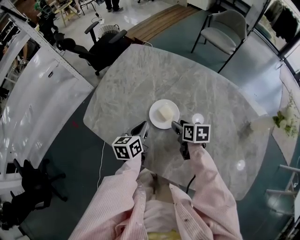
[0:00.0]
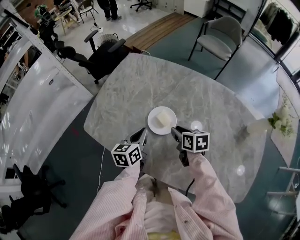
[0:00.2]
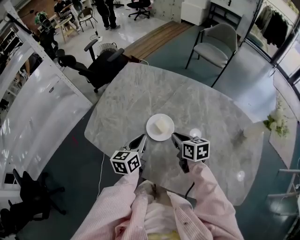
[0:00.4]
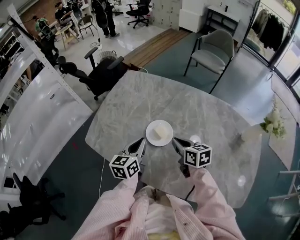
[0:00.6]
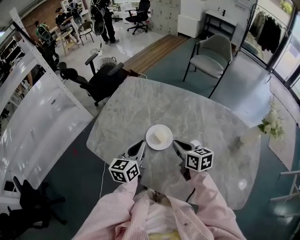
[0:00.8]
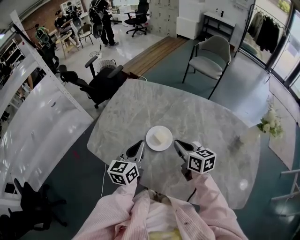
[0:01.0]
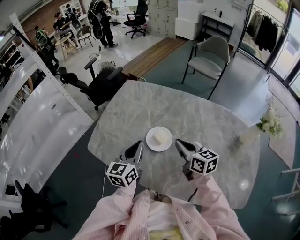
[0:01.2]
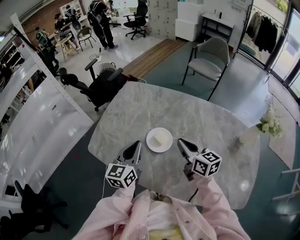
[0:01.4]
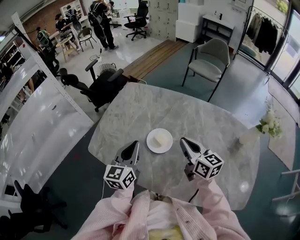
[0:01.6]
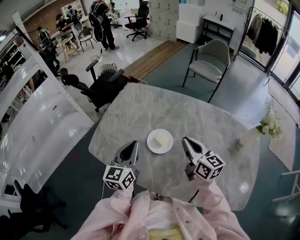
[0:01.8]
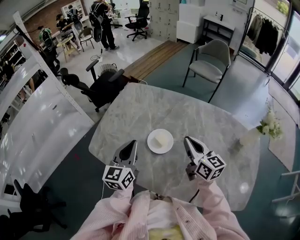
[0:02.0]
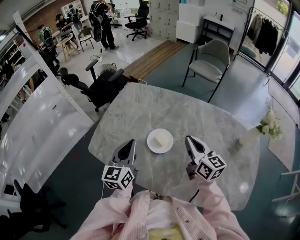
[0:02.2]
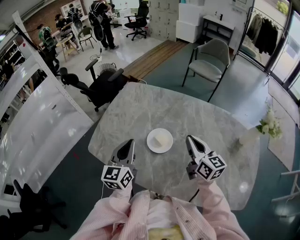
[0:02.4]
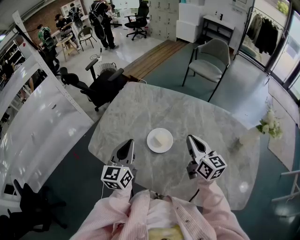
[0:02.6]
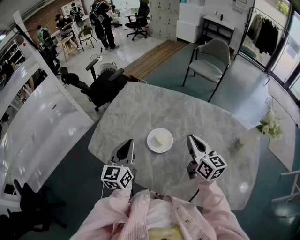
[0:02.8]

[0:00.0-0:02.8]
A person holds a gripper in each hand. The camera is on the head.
0:00.0 to 0:01.4: The left gripper travels upward by roughly 15 cm, and rotates about 30 degrees.

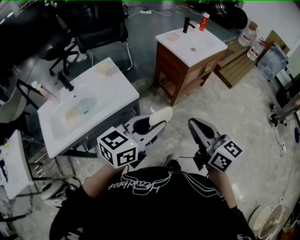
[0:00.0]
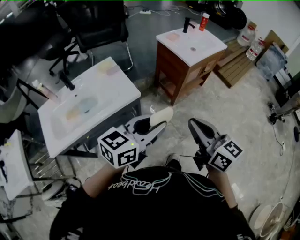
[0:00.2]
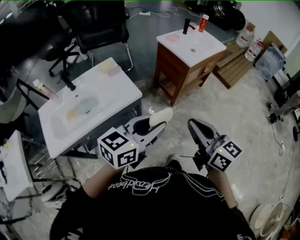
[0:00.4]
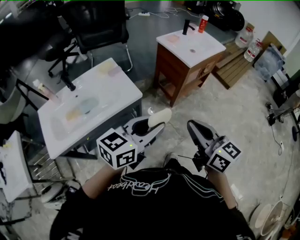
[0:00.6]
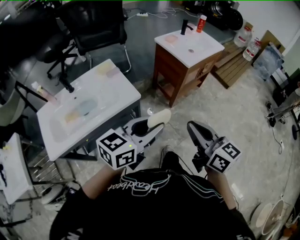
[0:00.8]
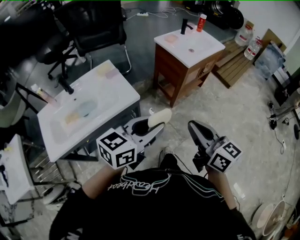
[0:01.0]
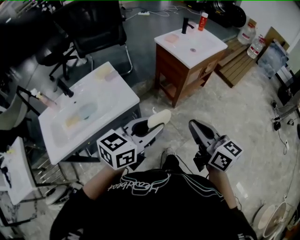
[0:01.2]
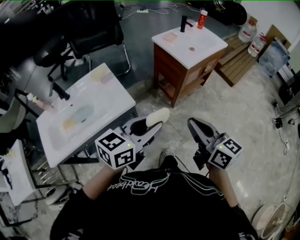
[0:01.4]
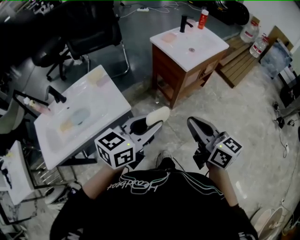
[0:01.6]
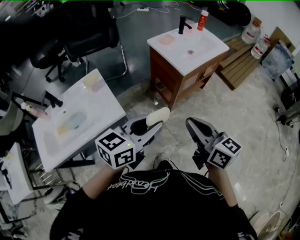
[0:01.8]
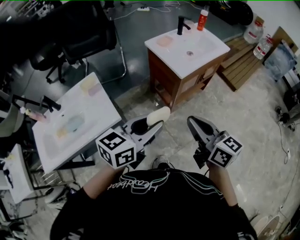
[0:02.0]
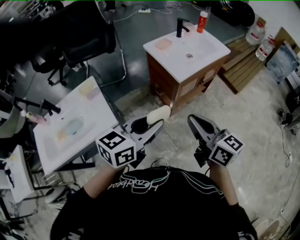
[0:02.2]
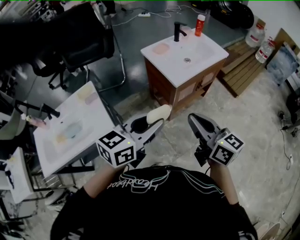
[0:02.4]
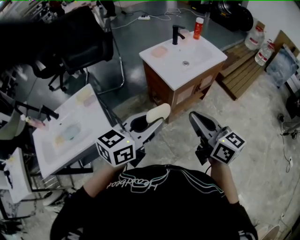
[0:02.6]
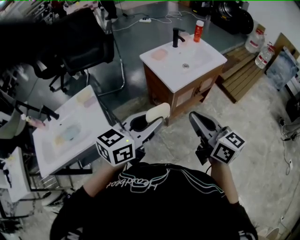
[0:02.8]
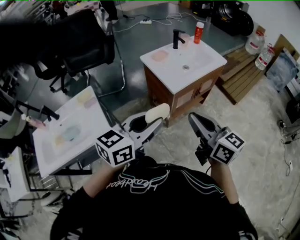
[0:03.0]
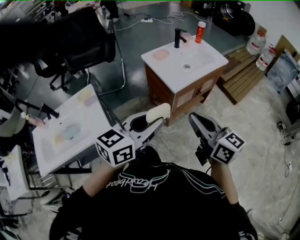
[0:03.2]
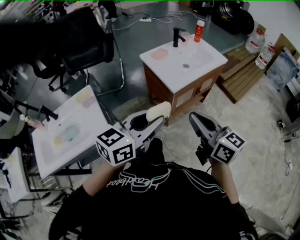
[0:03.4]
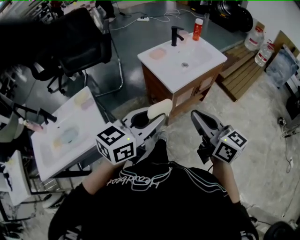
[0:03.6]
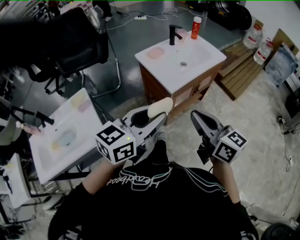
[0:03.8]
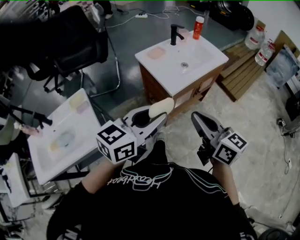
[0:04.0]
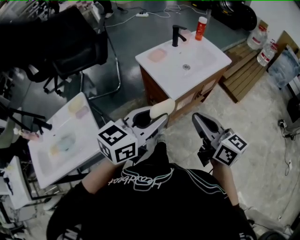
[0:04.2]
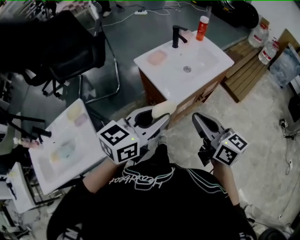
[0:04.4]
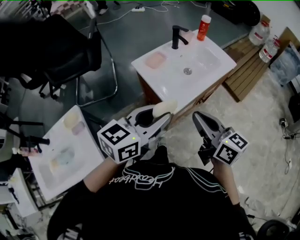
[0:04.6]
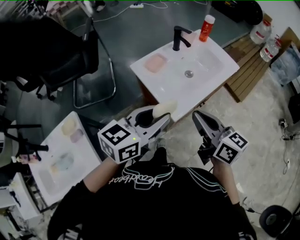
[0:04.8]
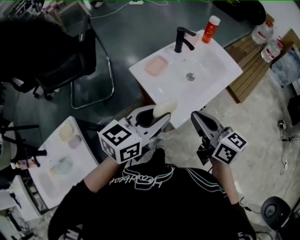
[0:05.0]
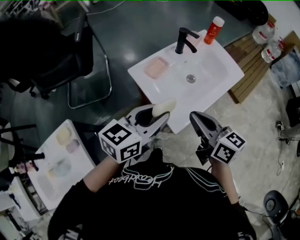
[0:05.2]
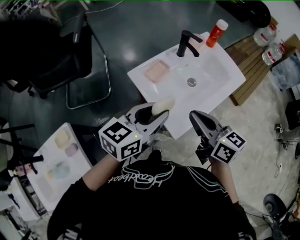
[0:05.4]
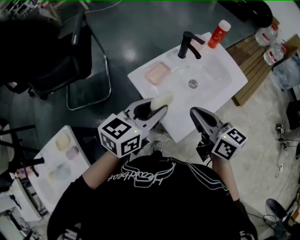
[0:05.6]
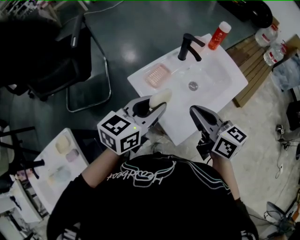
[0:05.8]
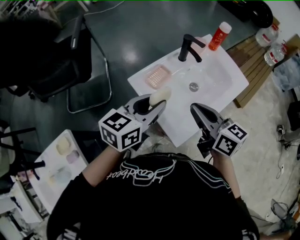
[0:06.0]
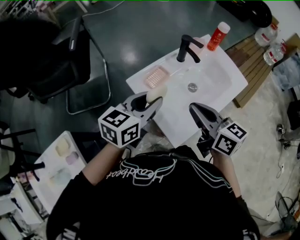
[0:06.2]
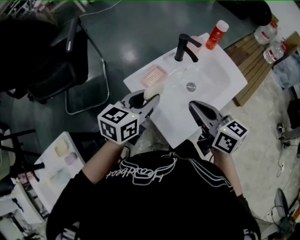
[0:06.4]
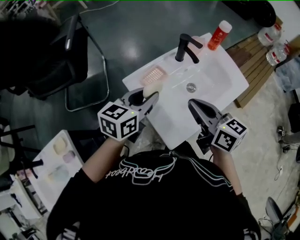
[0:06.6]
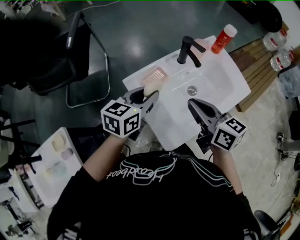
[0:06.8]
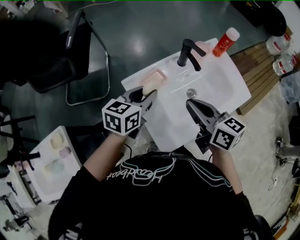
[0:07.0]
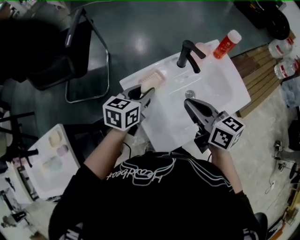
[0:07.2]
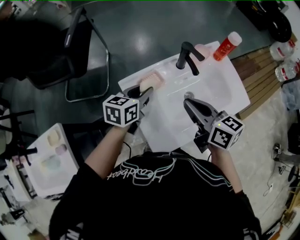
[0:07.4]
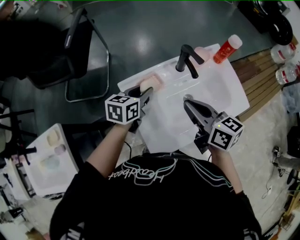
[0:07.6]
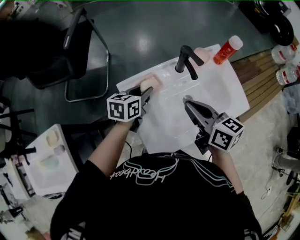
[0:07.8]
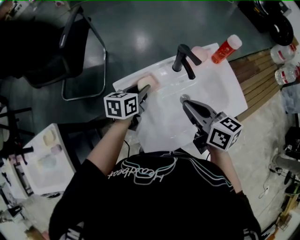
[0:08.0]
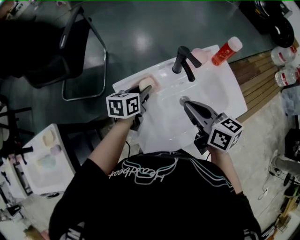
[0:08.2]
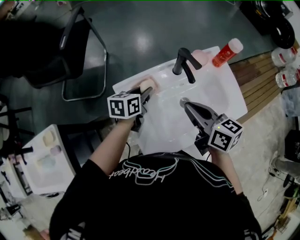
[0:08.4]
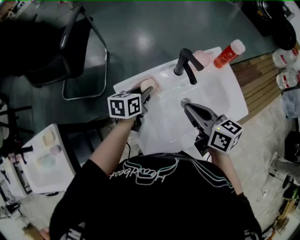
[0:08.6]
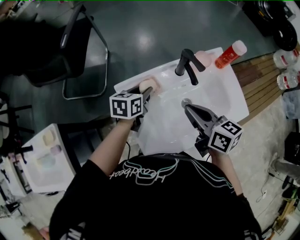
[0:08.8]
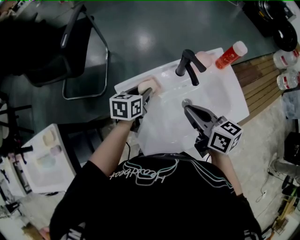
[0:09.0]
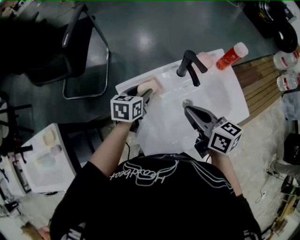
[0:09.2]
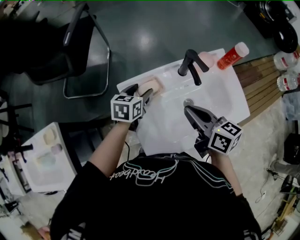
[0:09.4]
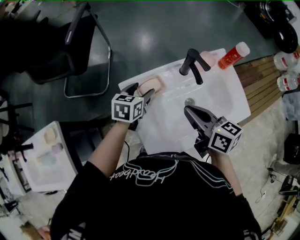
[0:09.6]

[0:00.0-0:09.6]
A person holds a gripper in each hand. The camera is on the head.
0:00.0 to 0:01.6: Both grippers travel together forward, roughly 10 cm.
0:01.6 to 0:03.2: The two grippers go about 20 cm forward and to the right.
0:03.2 to 0:04.8: The grippers both shift forward by some 30 cm.
0:04.8 to 0:06.4: Both grippers move forward, approximately 20 cm.
0:06.4 to 0:08.0: The left gripper shifts approximately 15 cm forward and downward, and swivels roughly 30 degrees. Meanwhile the right gripper travels forward and to the right by about 10 cm.
0:08.0 to 0:09.6: The left gripper opens up.

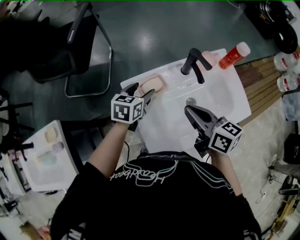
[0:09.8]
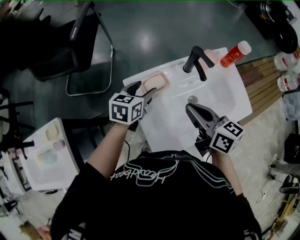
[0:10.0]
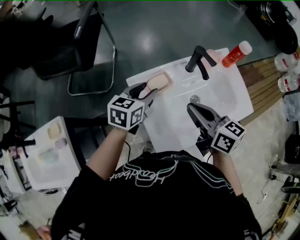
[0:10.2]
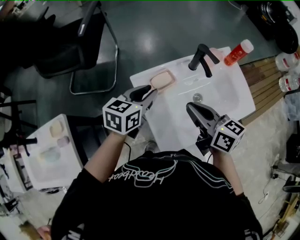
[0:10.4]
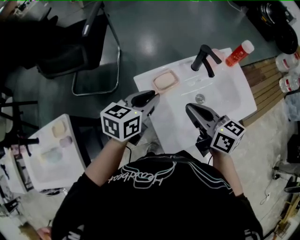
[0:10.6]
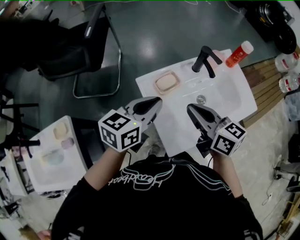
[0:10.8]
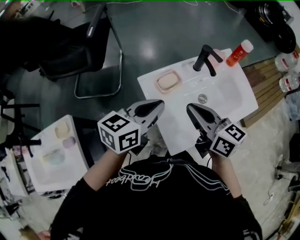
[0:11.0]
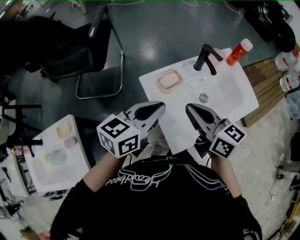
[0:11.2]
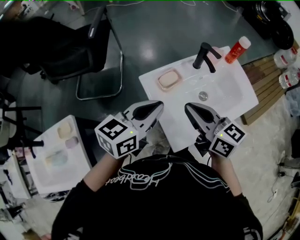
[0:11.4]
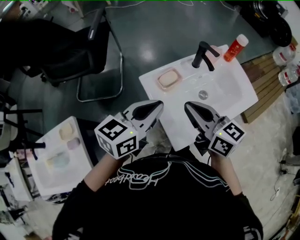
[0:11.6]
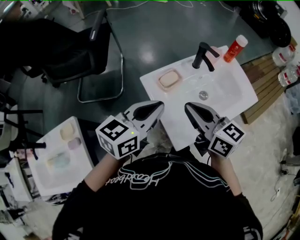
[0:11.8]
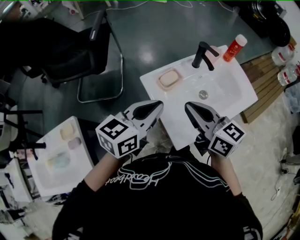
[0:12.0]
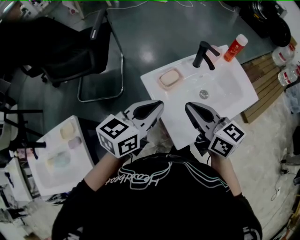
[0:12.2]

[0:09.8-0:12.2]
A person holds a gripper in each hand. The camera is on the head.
0:09.8 to 0:11.0: The right gripper is displaced to the left and backward by some 10 cm; the left gripper is displaced upward and backward by some 20 cm, swivels about 30 degrees, and closes.
0:11.0 to 0:12.2: The grippers make only small movements.
